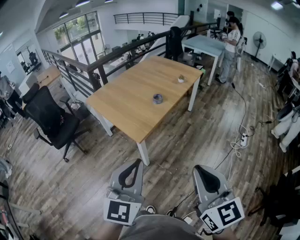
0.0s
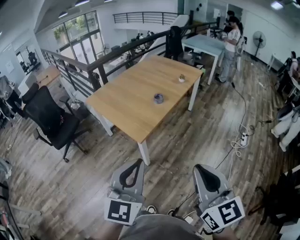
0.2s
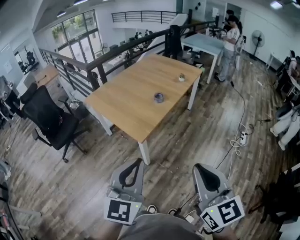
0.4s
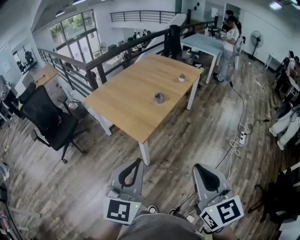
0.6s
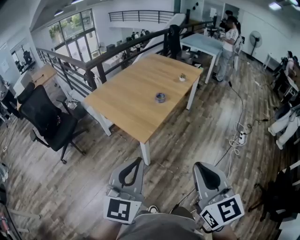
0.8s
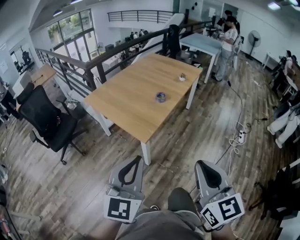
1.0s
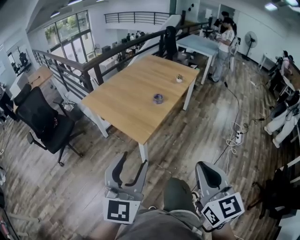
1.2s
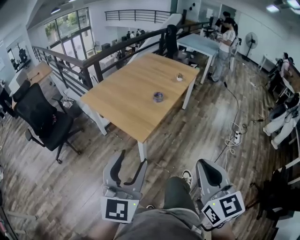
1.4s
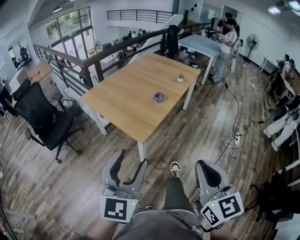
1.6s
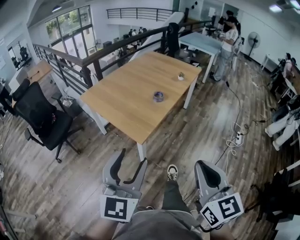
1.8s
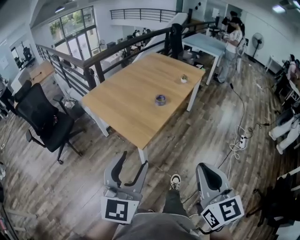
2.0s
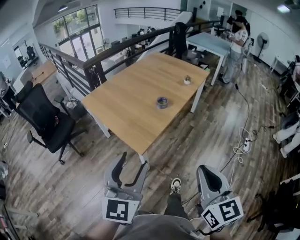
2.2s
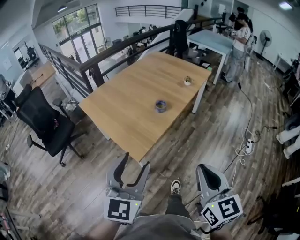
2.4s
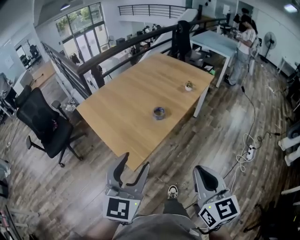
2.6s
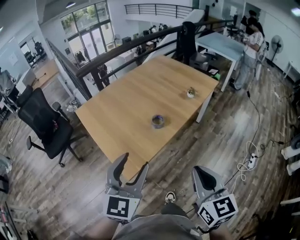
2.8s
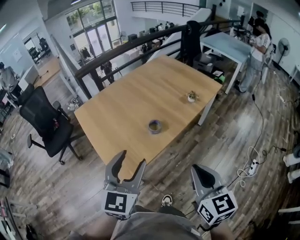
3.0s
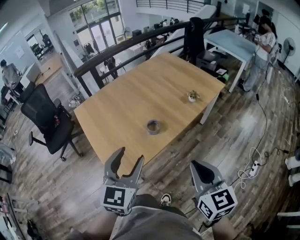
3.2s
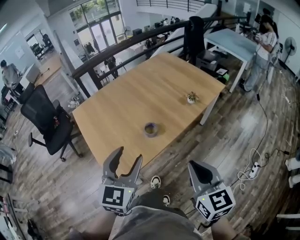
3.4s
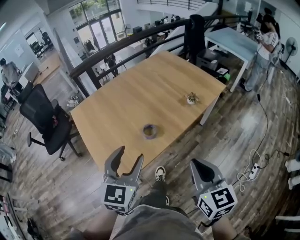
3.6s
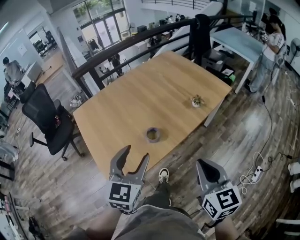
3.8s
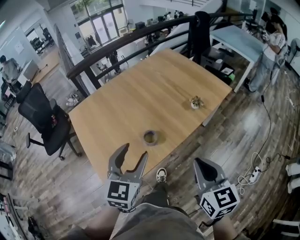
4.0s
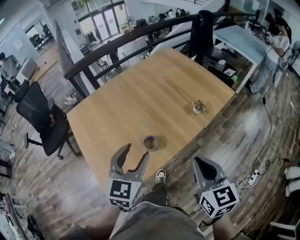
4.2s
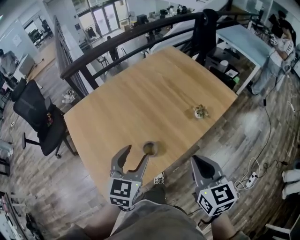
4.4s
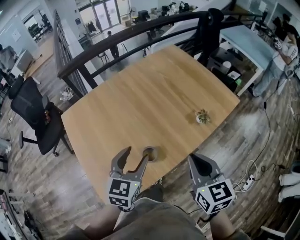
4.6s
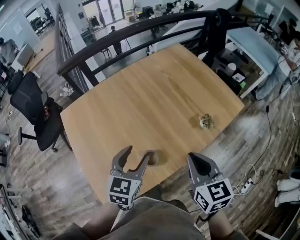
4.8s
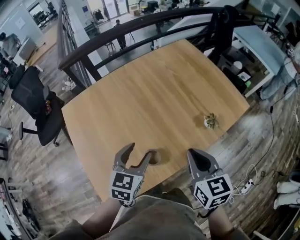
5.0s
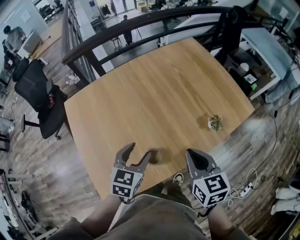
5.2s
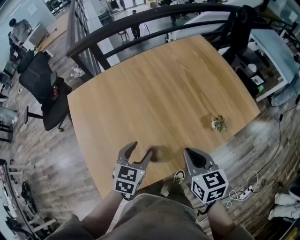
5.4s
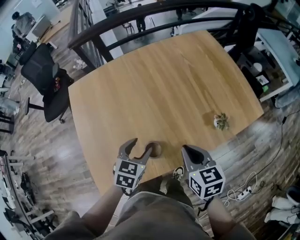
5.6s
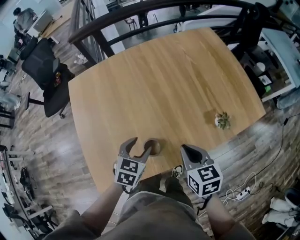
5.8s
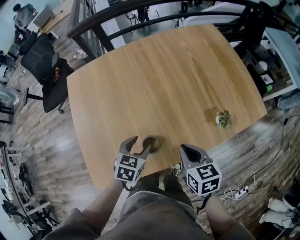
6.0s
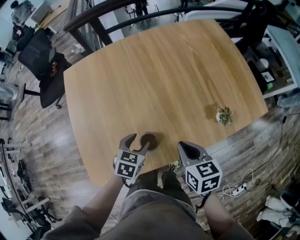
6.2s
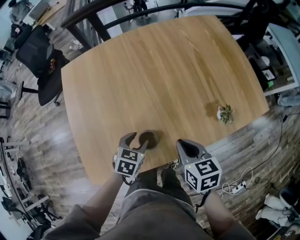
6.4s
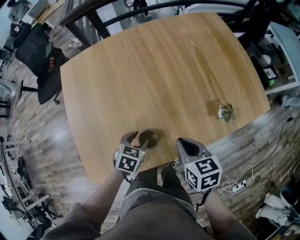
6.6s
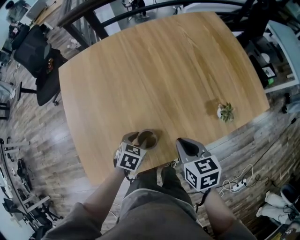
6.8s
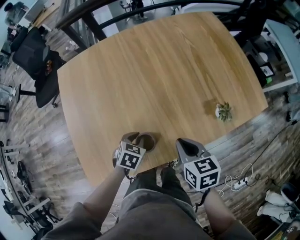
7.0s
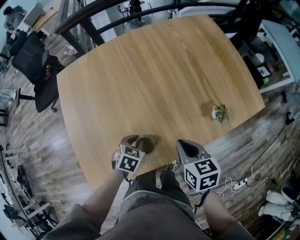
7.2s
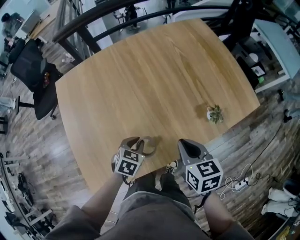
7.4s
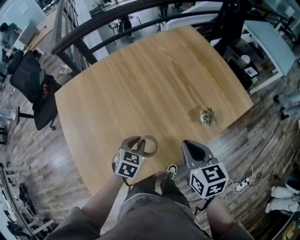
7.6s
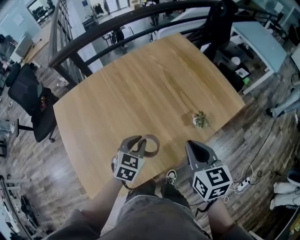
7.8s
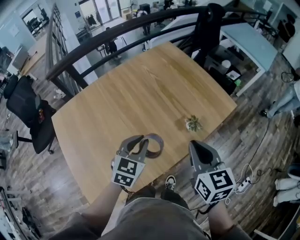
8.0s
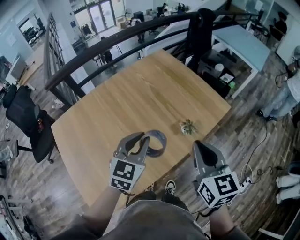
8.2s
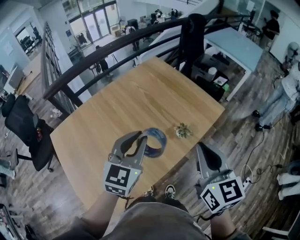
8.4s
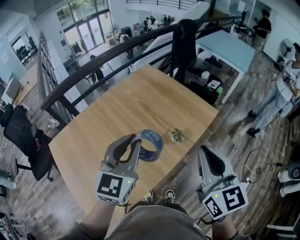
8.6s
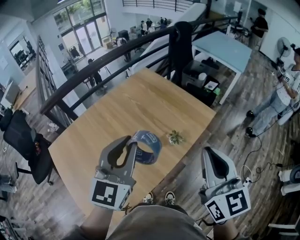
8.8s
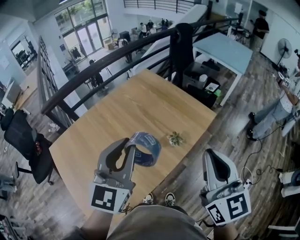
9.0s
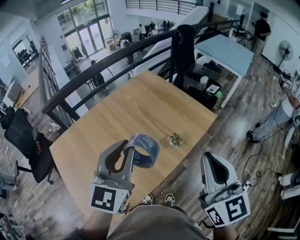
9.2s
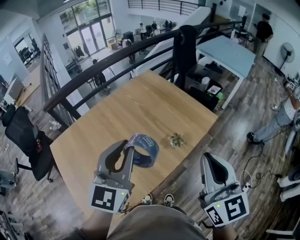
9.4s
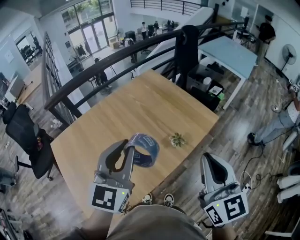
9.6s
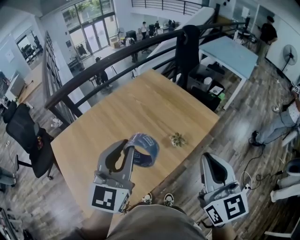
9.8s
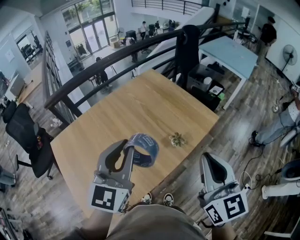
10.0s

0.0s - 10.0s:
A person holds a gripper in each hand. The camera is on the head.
0.0s - 1.4s: The grippers both shift to the left by some 10 cm. The left gripper opens up.
1.4s - 2.8s: The grippers both shift forward and to the right by roughly 35 cm.
2.8s - 4.2s: The left gripper is displaced forward by about 25 cm. Meanwhile the right gripper travels forward and to the right by roughly 30 cm.
4.2s - 5.8s: The left gripper heads downward and forward, covering roughly 25 cm, and turns by approximately 30 degrees. The right gripper goes roughly 25 cm forward and downward, and changes its angle by approximately 30 degrees.
5.8s - 7.2s: The left gripper travels downward by about 10 cm, and closes.
7.2s - 8.6s: The two grippers go roughly 35 cm upward. The right gripper tips its fingers upward by some 40 degrees, while the left gripper tilts its fingers approximately 50 degrees upward.
8.6s - 10.0s: The left gripper ends up some 5 cm from where it was.

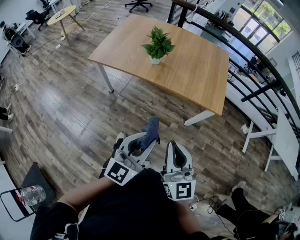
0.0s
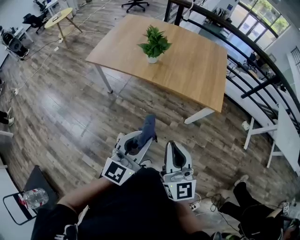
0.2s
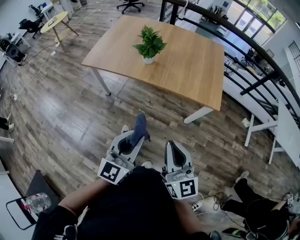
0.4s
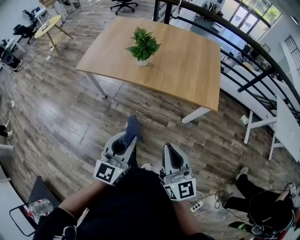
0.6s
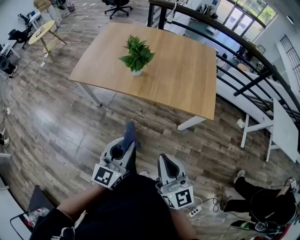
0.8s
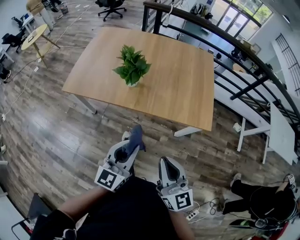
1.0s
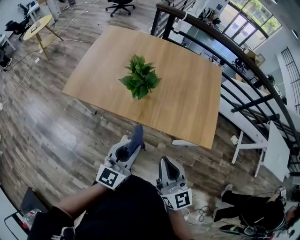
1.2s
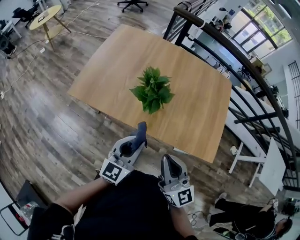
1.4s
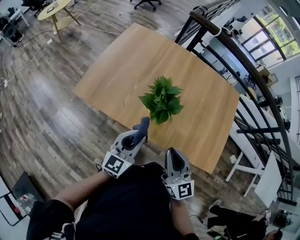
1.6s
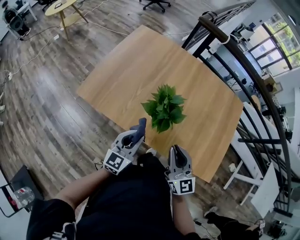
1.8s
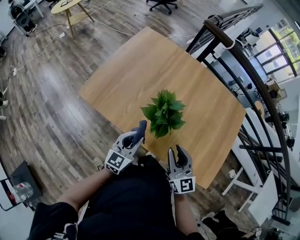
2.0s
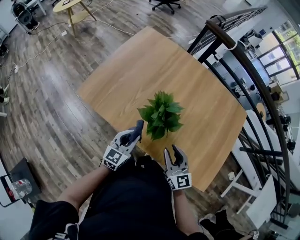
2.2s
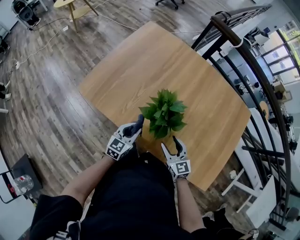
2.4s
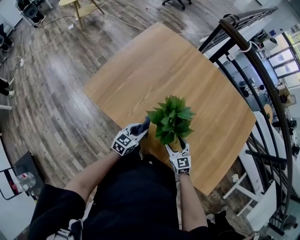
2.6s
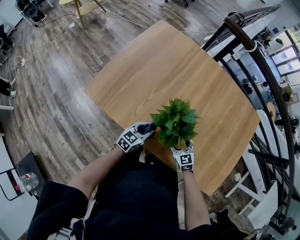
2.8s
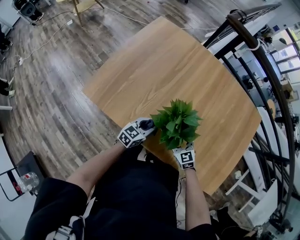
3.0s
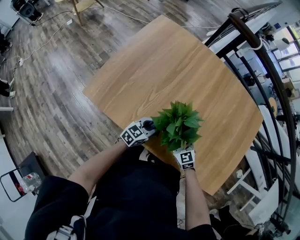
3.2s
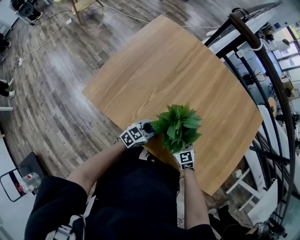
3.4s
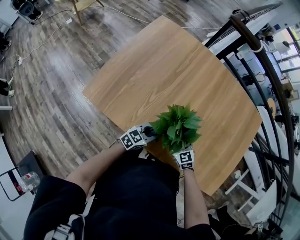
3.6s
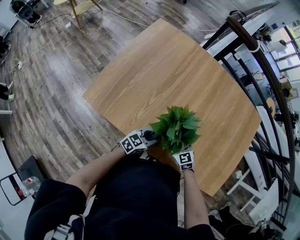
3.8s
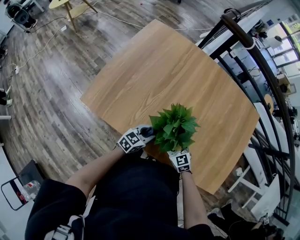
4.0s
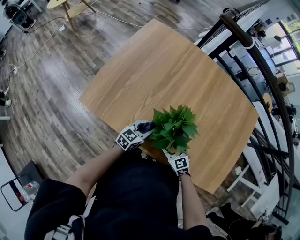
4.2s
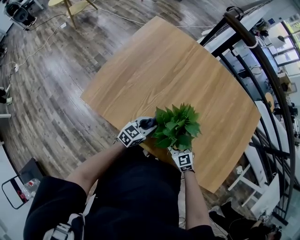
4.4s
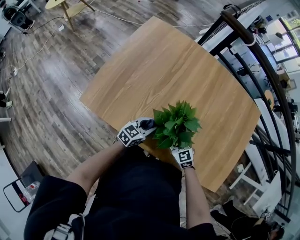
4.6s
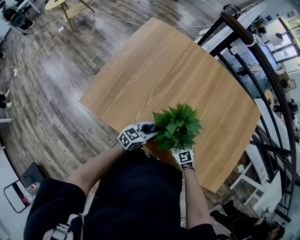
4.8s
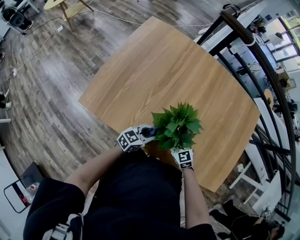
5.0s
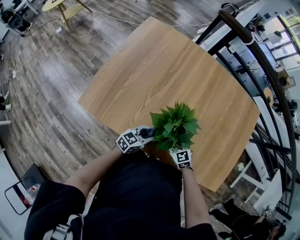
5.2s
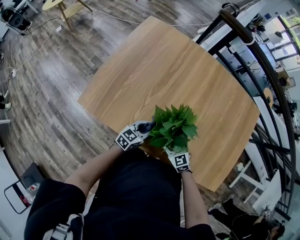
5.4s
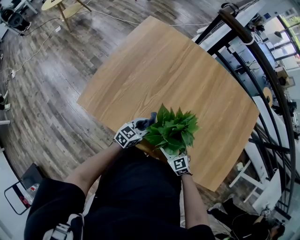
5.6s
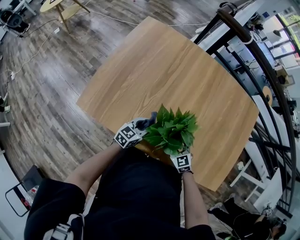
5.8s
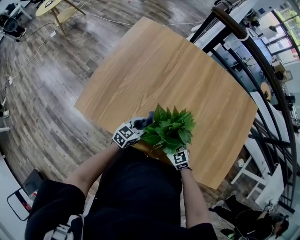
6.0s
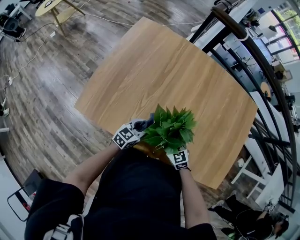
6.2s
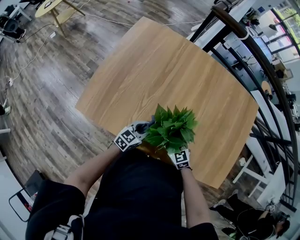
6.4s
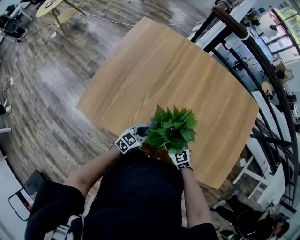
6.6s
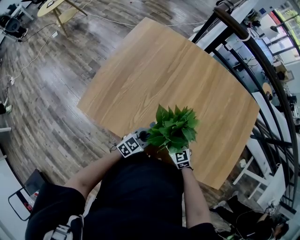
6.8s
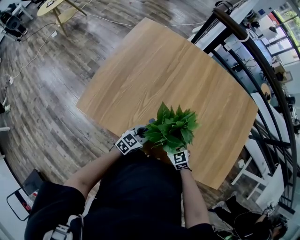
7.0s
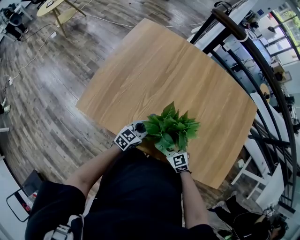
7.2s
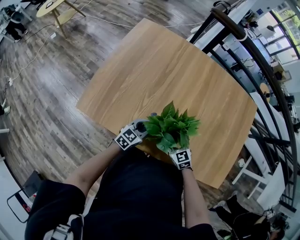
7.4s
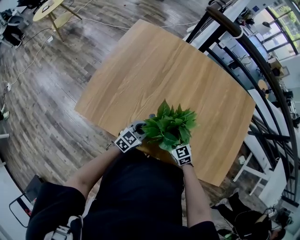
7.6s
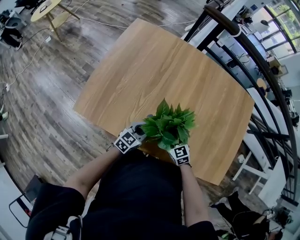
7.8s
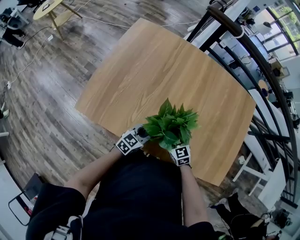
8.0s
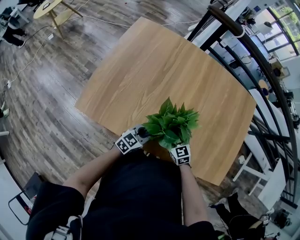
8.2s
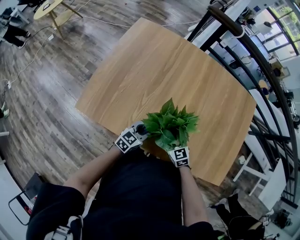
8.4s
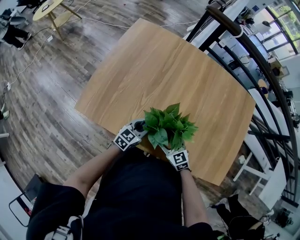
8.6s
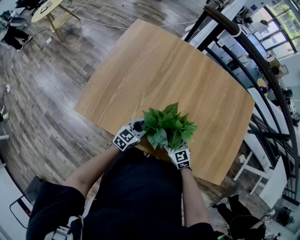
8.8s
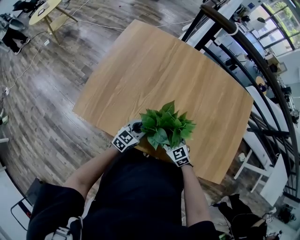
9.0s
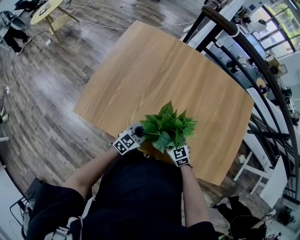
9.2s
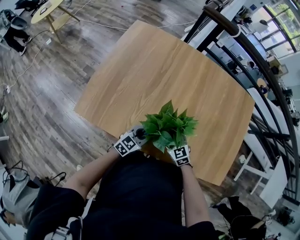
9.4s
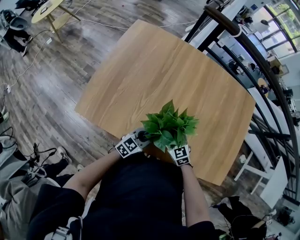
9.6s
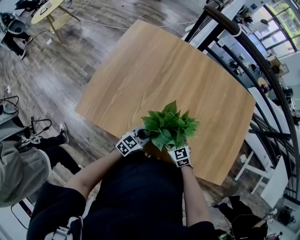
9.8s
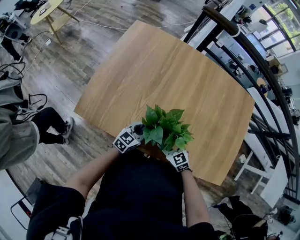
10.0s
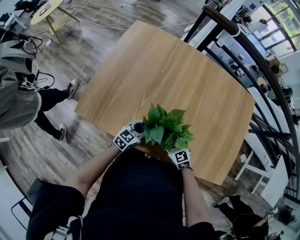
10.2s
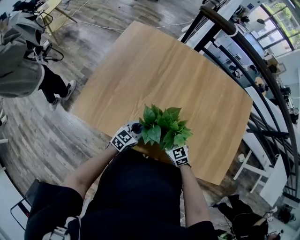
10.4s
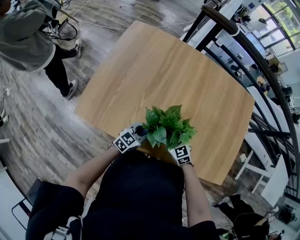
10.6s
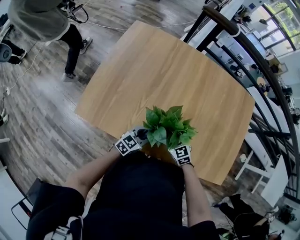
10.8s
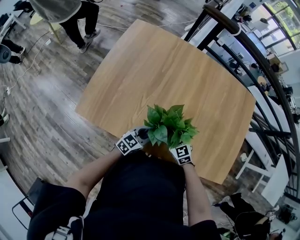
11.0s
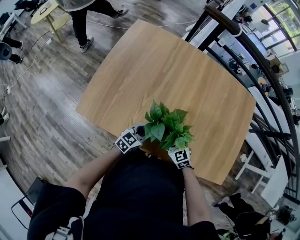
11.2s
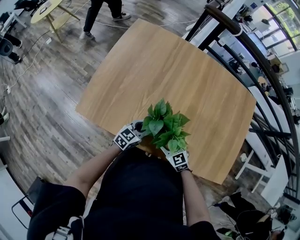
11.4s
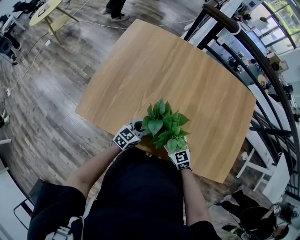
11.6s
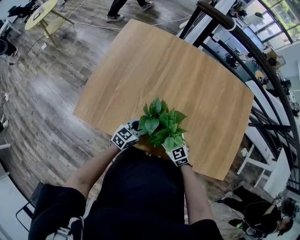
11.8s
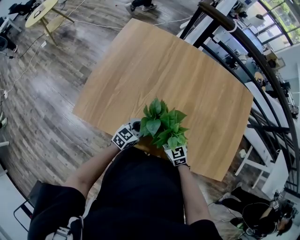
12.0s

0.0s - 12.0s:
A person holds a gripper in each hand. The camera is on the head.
0.0s - 1.6s: The grippers both shift forward by some 40 cm.
1.6s - 3.0s: The grippers both shift downward and forward by approximately 30 cm. The right gripper tilts its fingers some 40 degrees downward, and opens, while the left gripper swivels some 20 degrees.
3.0s - 6.0s: The grippers make only small movements.
7.6s - 12.0s: The grippers make only small movements.

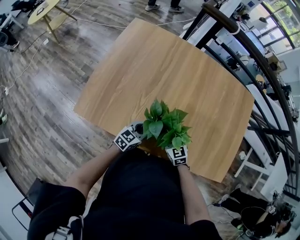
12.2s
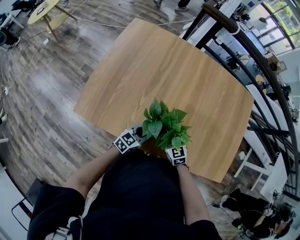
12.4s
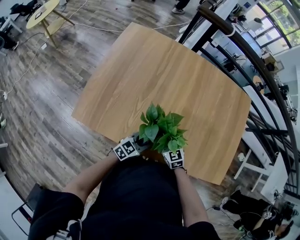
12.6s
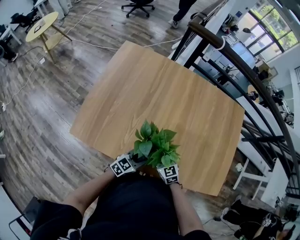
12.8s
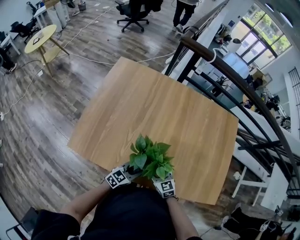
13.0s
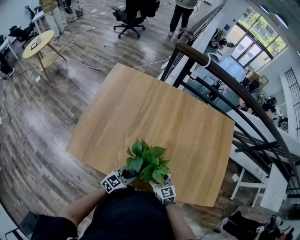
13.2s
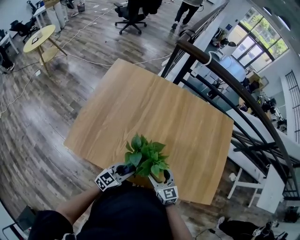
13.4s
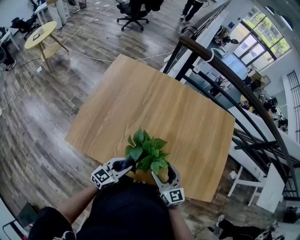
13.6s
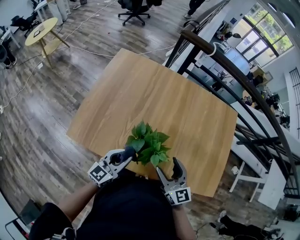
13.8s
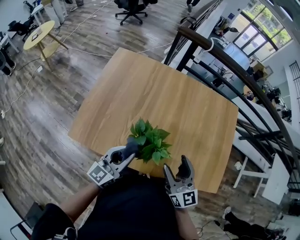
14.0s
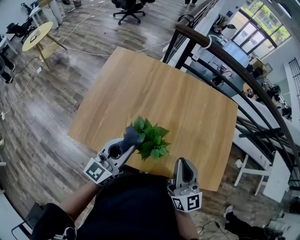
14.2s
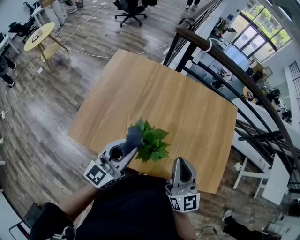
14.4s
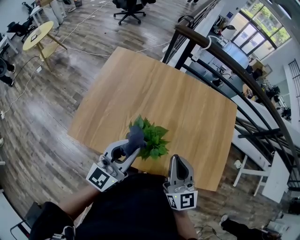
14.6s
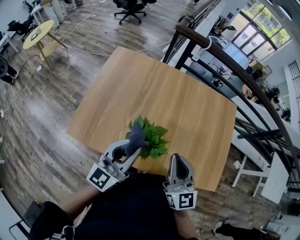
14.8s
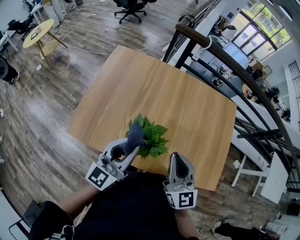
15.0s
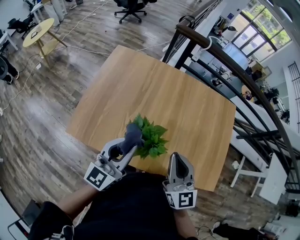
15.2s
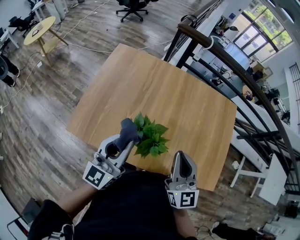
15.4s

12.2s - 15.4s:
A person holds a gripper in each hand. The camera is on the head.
12.2s - 13.8s: The two grippers go roughly 15 cm upward. The right gripper swivels about 30 degrees; the left gripper rotates some 20 degrees.
13.8s - 15.4s: Both grippers move upward, roughly 15 cm. The right gripper closes; the left gripper swivels approximately 20 degrees.
